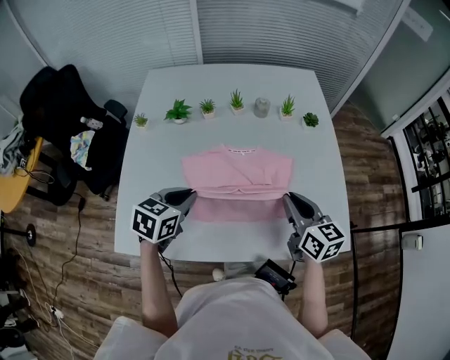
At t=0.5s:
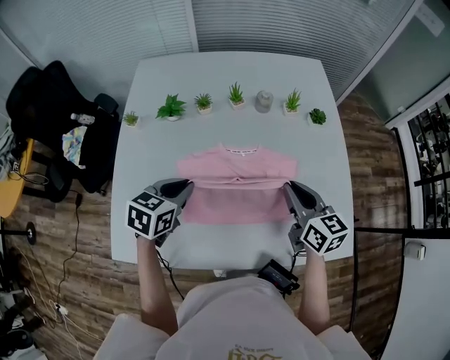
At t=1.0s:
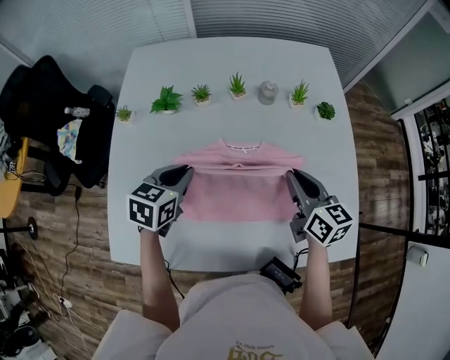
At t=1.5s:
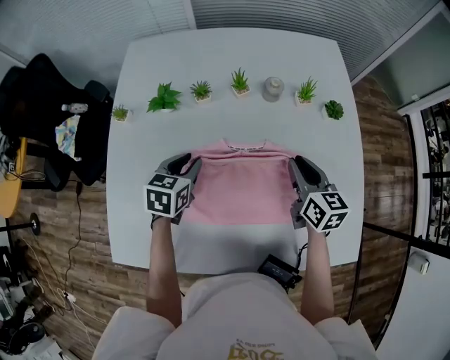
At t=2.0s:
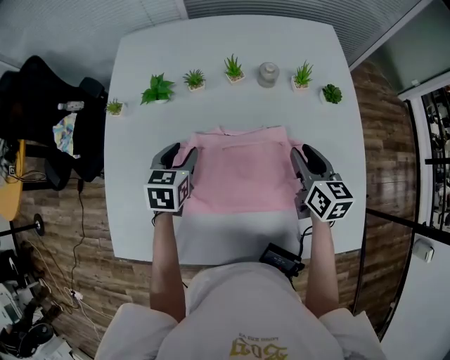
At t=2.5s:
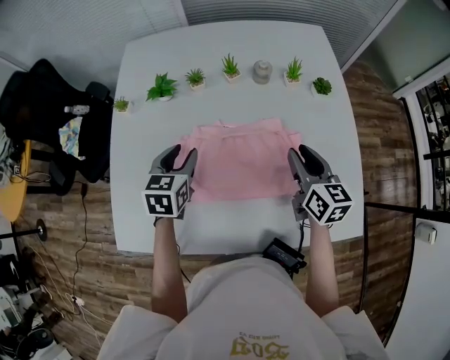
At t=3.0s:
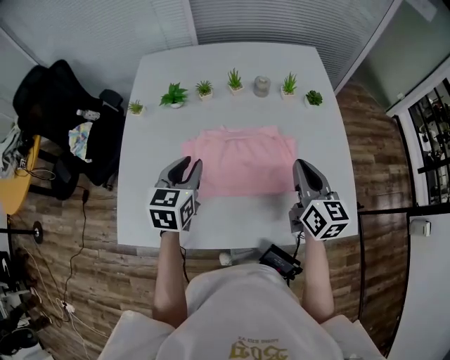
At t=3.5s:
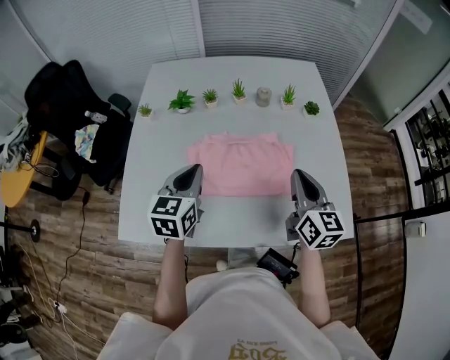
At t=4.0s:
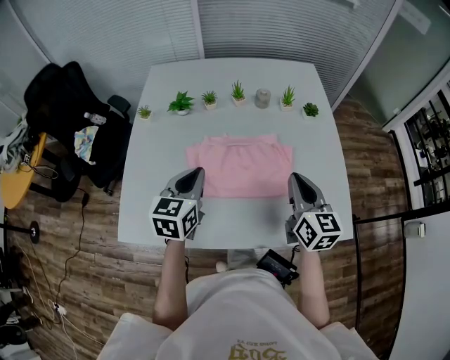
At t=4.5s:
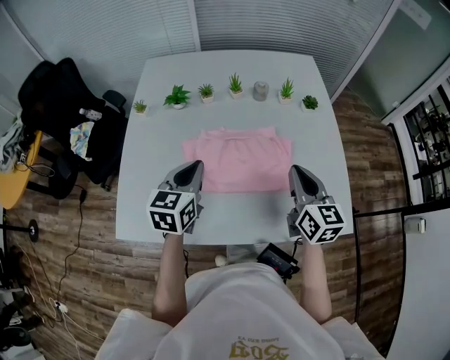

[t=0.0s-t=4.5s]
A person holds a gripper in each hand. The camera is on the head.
t=0.0s to t=2.0s: The grippers both shift forward and downward by roughly 20 cm. The right gripper opens. Meanwhile the left gripper opens.
t=2.0s to t=4.5s: Both grippers travel together backward and upward, some 20 cm. The right gripper closes. Meanwhile the left gripper rotates approximately 20 degrees, and closes its fingers.

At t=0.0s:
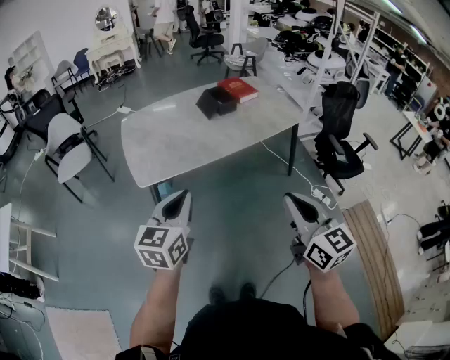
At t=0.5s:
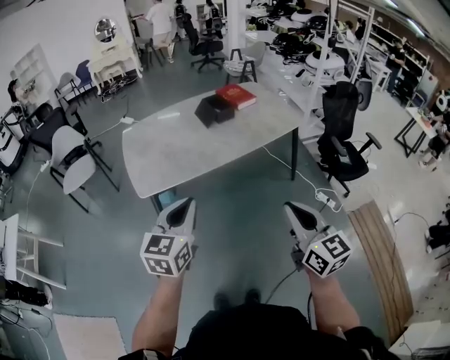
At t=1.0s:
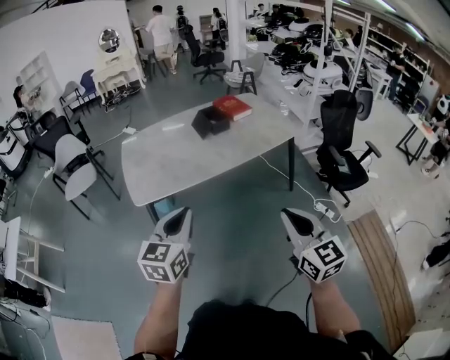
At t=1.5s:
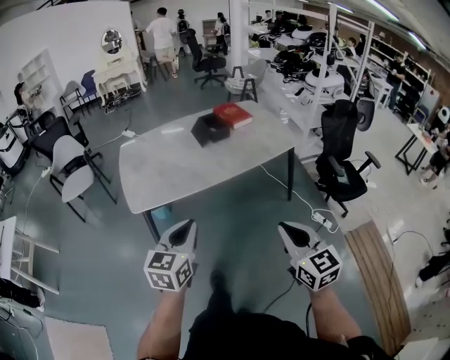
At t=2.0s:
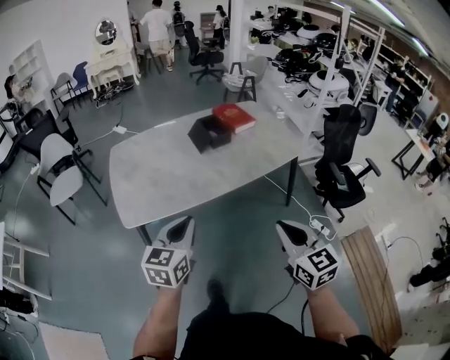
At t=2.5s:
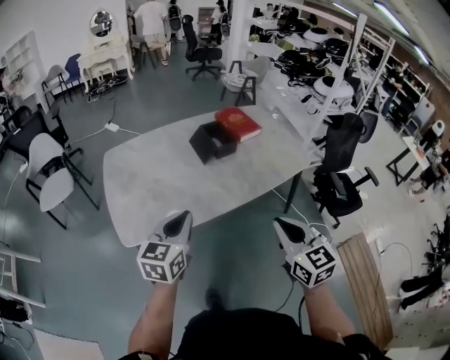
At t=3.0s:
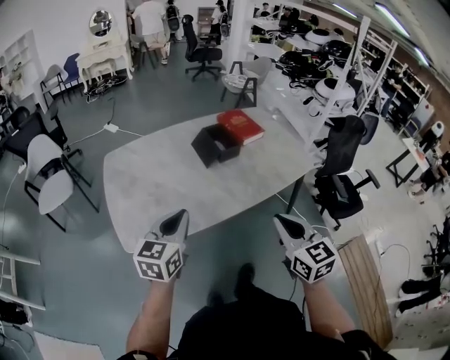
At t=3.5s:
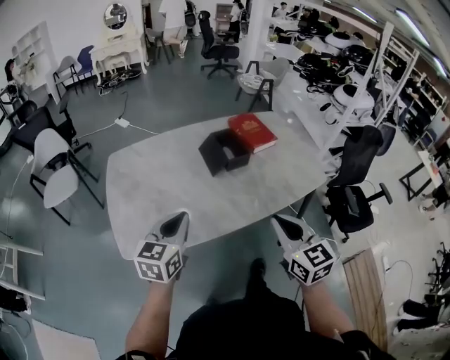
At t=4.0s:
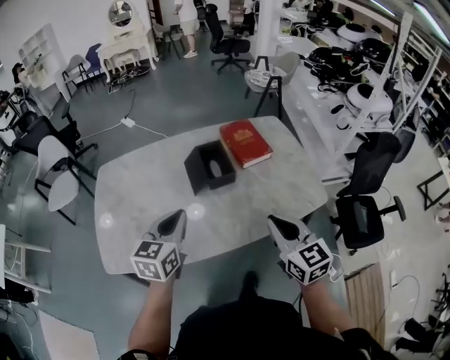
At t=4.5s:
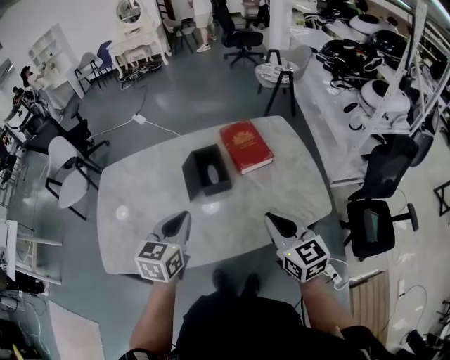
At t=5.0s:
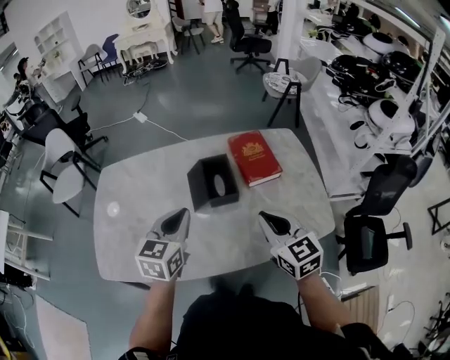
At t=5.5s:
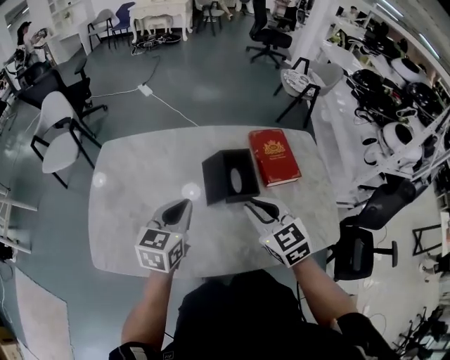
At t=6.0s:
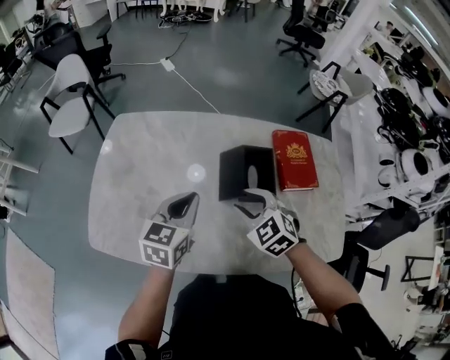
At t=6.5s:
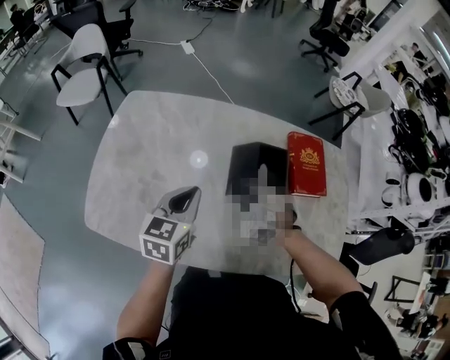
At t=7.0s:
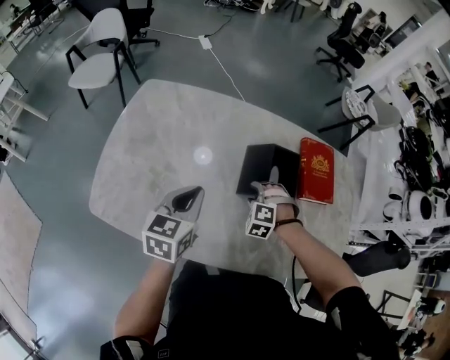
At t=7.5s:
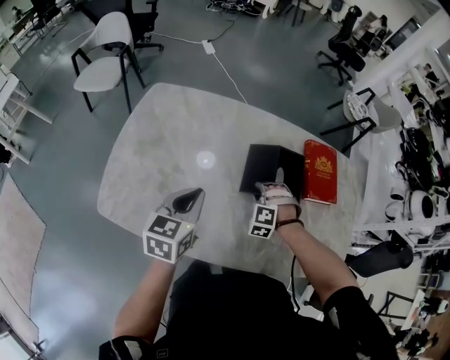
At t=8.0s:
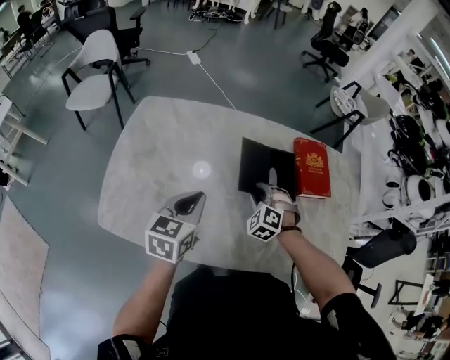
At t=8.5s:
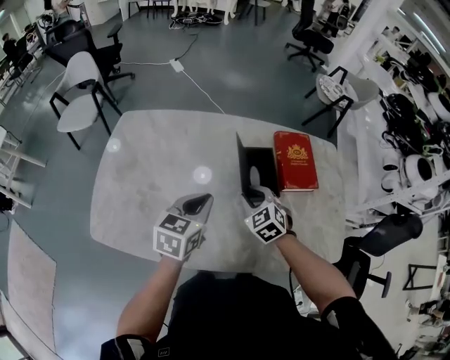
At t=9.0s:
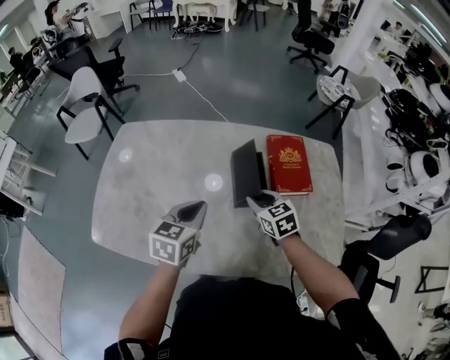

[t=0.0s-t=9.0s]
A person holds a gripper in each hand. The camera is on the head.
t=0.0s to t=2.0s: Both grippers move forward and to the right, roughly 20 cm.
t=2.0s to t=4.5s: The pair of grippers is taken forward, approximately 50 cm.
t=4.5s to t=7.0s: The left gripper moves to the left, forward and downward, approximately 30 cm, and turns by some 20 degrees. The right gripper heads downward, to the left and forward, covering roughly 50 cm, rolls counterclockwise, seen from behind, by roughly 80 degrees, and opens up.
t=7.0s to t=9.0s: The right gripper is displaced to the right and upward by roughly 20 cm, rolls clockwise, seen from behind, by roughly 70 degrees, and closes up; the left gripper moves to the right, about 15 cm.

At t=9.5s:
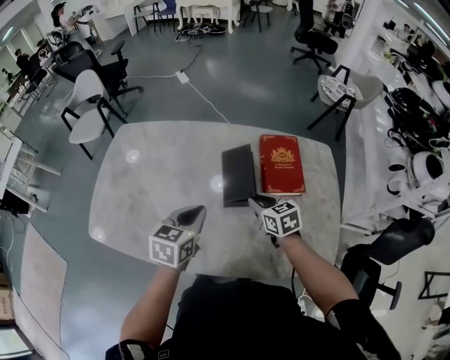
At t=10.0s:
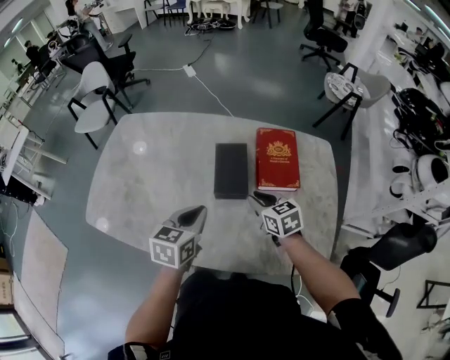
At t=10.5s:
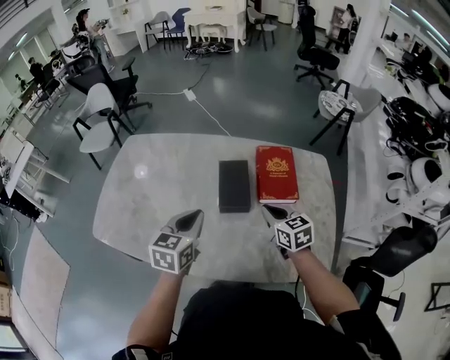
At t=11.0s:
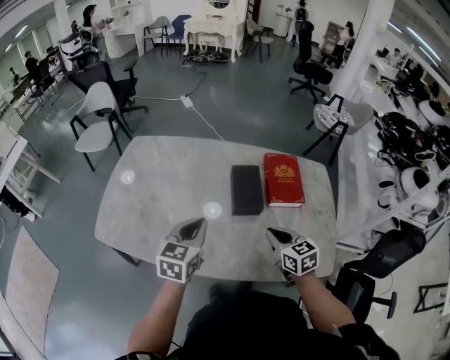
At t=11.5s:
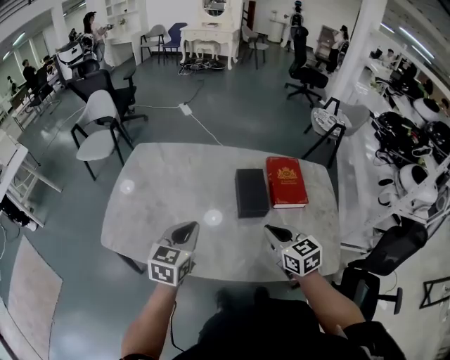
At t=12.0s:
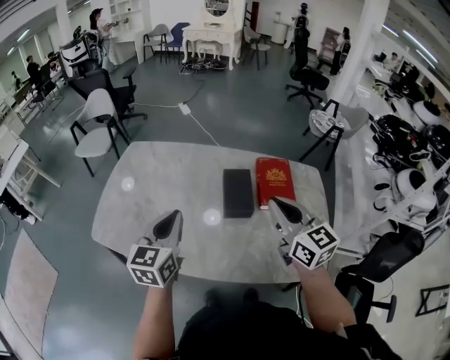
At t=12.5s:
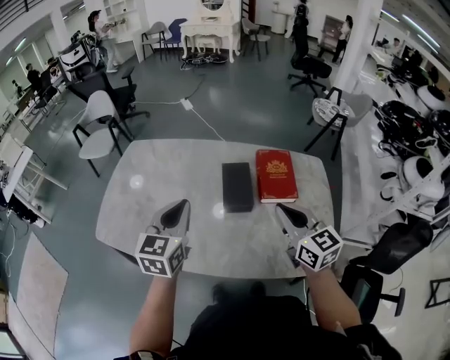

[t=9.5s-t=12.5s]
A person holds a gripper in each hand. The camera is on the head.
t=9.5s to t=11.0s: The right gripper travels backward and upward by approximately 15 cm, while the left gripper is displaced backward and to the left by about 10 cm.
t=11.0s to t=12.5s: The left gripper travels upward by about 10 cm. Meanwhile the right gripper shifts about 15 cm upward and to the right, and turns by roughly 20 degrees.

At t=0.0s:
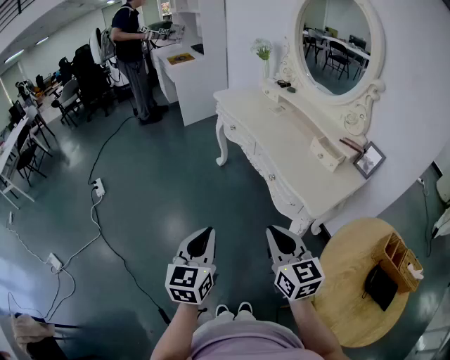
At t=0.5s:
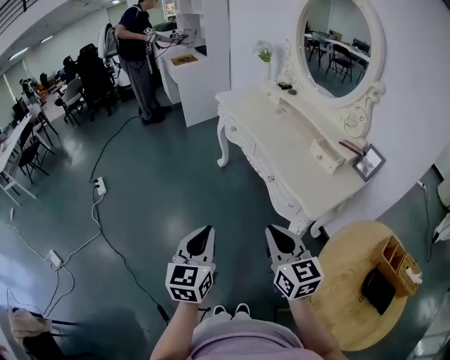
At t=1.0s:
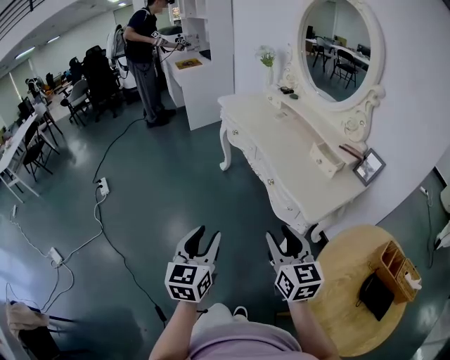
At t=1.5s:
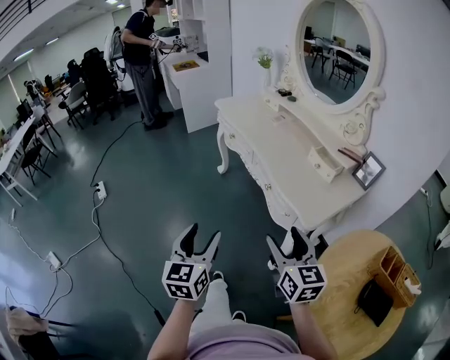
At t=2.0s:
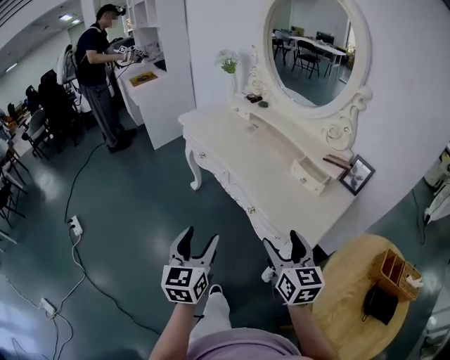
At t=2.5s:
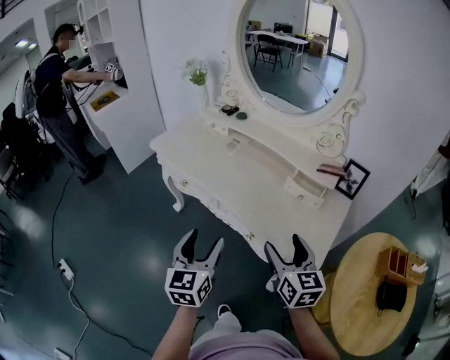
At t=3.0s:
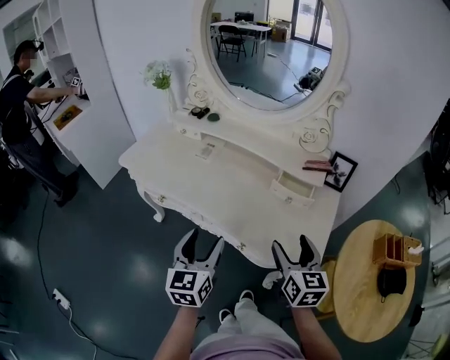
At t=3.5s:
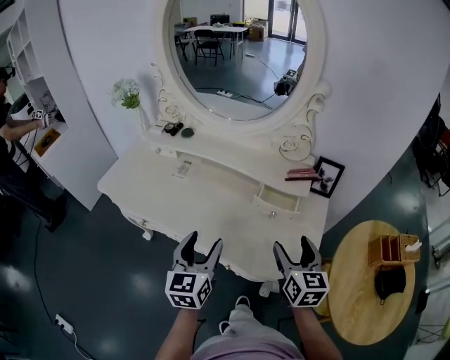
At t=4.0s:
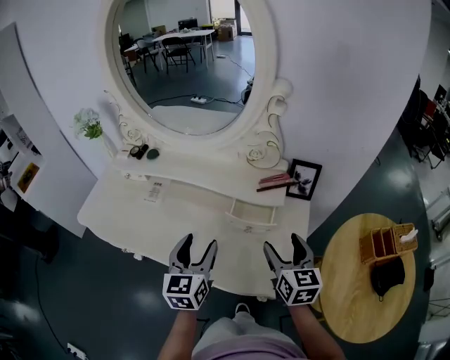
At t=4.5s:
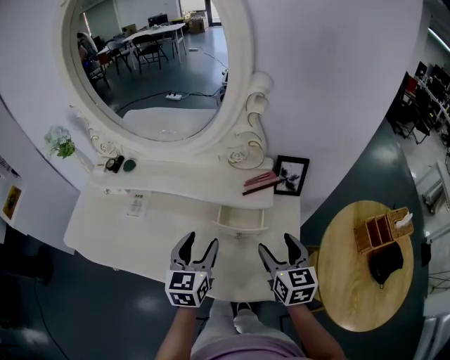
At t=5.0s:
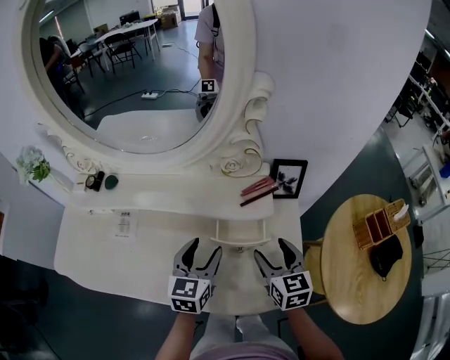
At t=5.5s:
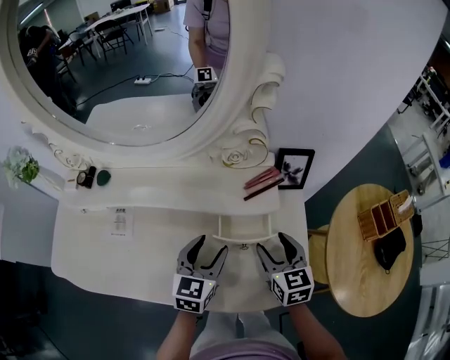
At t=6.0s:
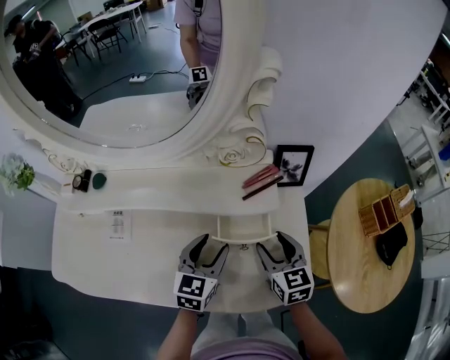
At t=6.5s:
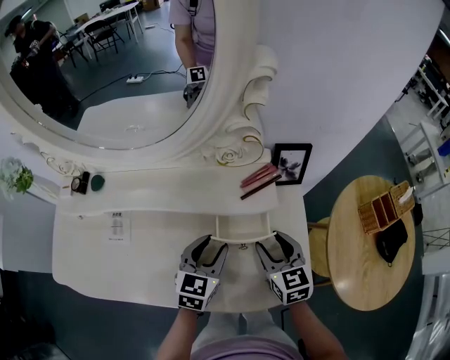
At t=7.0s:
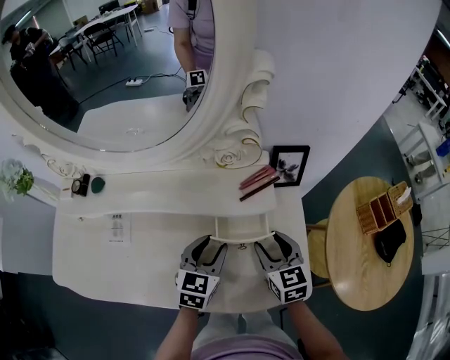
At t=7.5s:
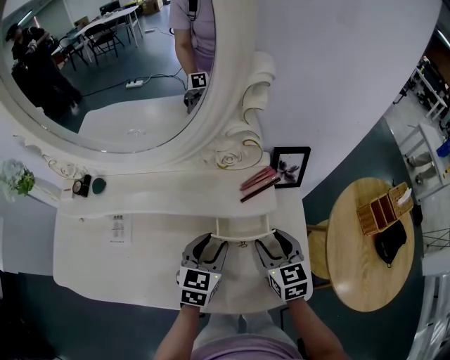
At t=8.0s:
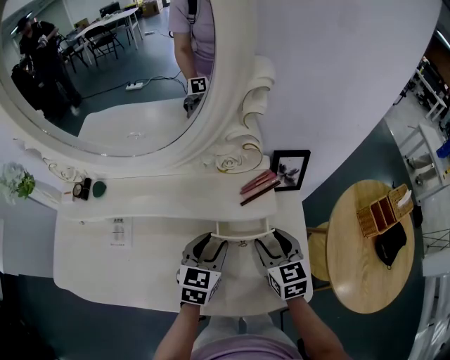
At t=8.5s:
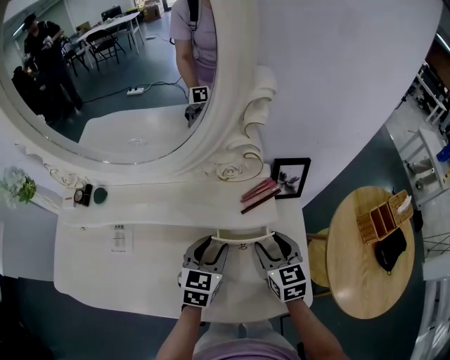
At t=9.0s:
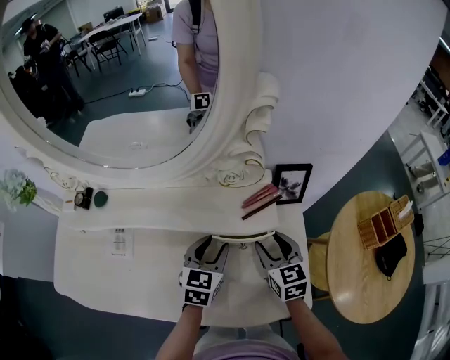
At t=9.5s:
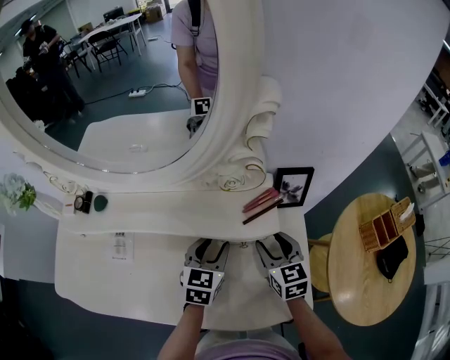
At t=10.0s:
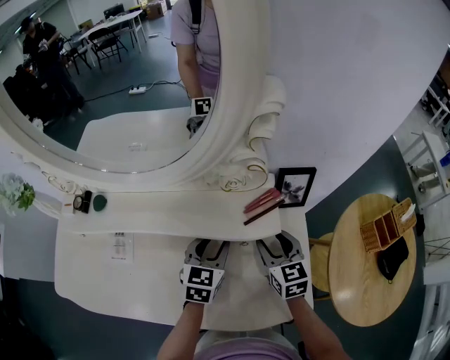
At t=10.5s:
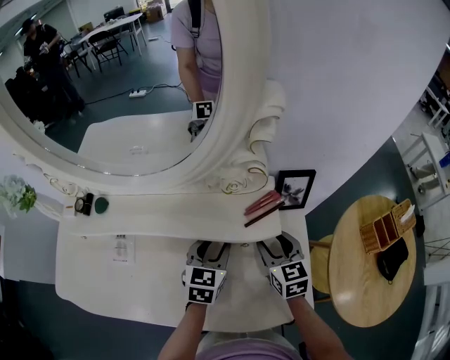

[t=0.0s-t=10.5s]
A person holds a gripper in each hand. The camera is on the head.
t=0.0s to t=2.0s: The left gripper is displaced forward by some 20 cm, and opens; the right gripper travels forward and to the right by some 15 cm, rotates some 20 degrees, and opens up.
t=2.0s to t=4.0s: The left gripper shifts by roughly 35 cm, and changes its angle by some 40 degrees, while the right gripper changes place by some 25 cm, and turns by approximately 40 degrees.
t=4.0s to t=6.5s: The right gripper heads downward and forward, covering approximately 10 cm, and closes. Meanwhile the left gripper shifts some 15 cm forward, downward and to the right, and changes its angle by approximately 40 degrees.
t=6.5s to t=8.5s: There are only small adjustments of the grippers.
t=8.5s to t=10.5s: The grippers stay close to where they were, moving slightly.
